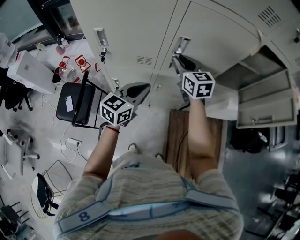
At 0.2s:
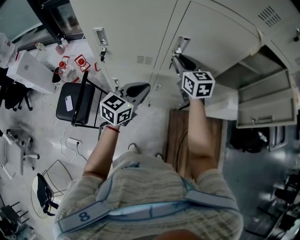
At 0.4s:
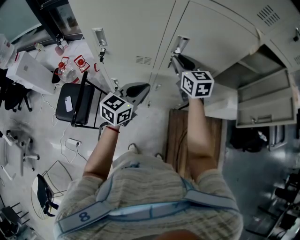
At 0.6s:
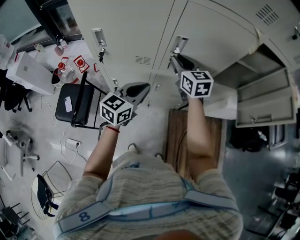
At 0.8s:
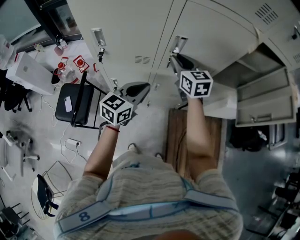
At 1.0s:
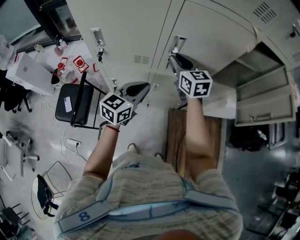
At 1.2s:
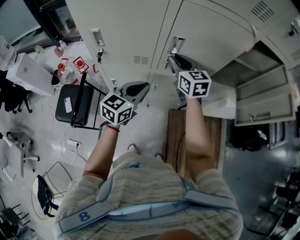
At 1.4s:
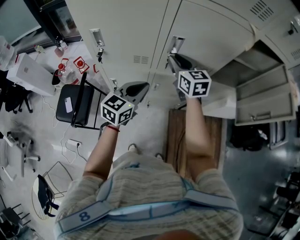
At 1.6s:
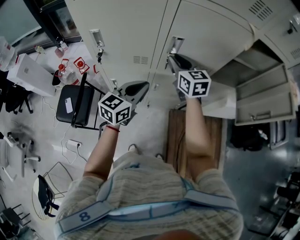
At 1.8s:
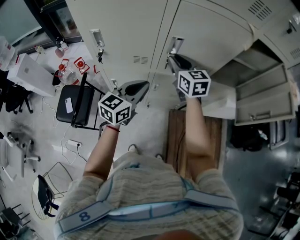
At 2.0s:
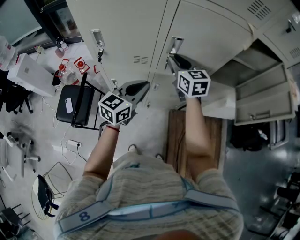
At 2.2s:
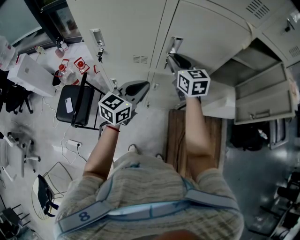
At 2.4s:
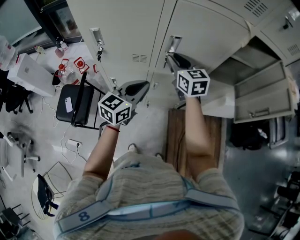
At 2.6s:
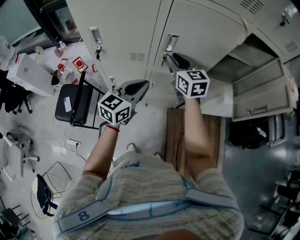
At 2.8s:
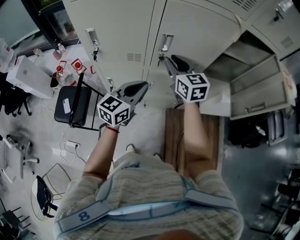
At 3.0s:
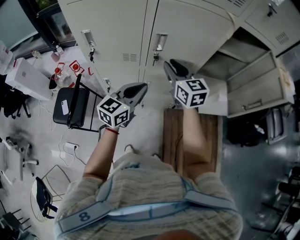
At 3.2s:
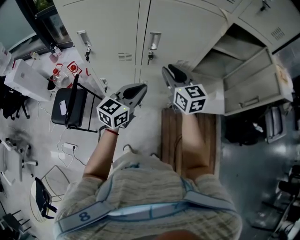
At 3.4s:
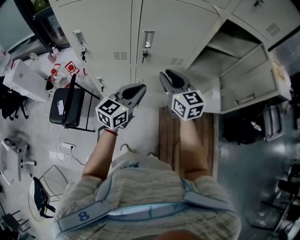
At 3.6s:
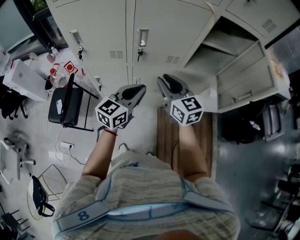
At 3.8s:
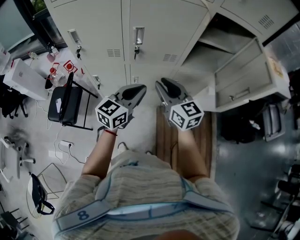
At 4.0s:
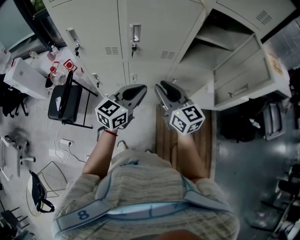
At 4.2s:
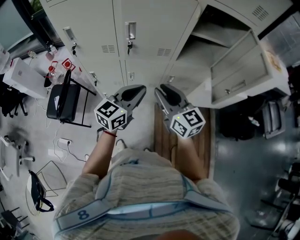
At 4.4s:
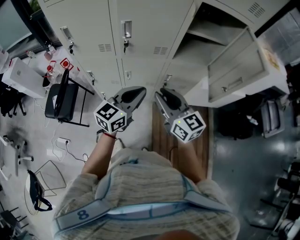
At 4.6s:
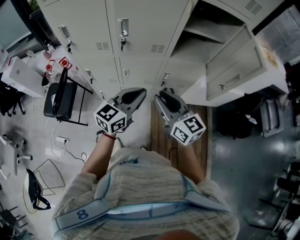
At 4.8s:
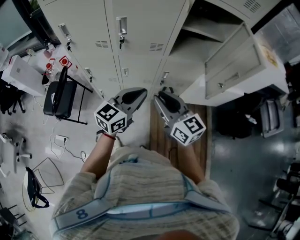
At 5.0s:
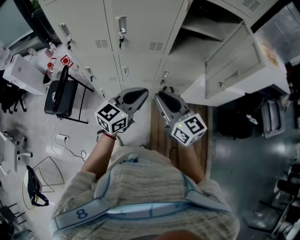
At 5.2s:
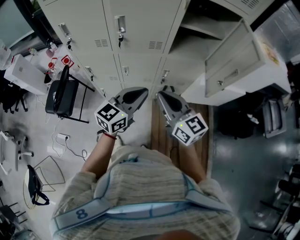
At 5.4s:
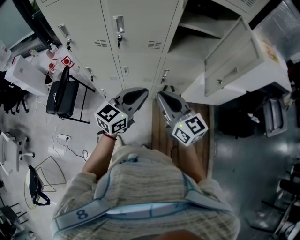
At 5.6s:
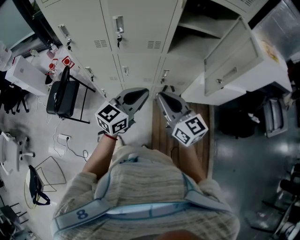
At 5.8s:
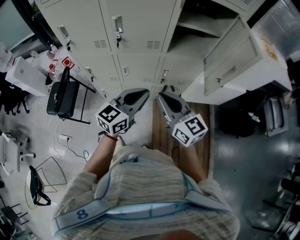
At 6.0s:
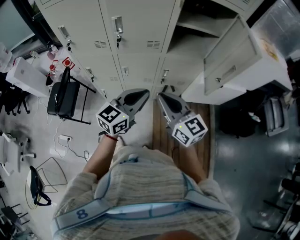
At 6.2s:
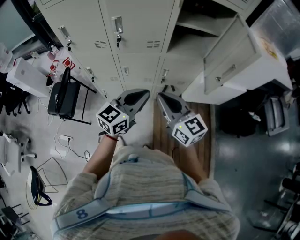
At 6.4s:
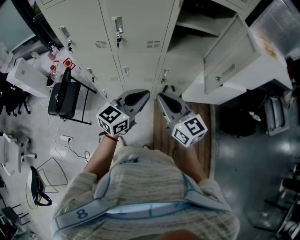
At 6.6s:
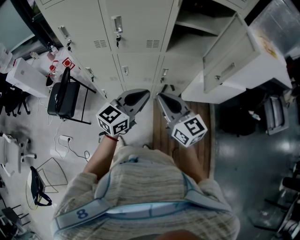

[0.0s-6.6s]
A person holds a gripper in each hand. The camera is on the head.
0.0s to 1.6s: The grippers make only small movements.
1.6s to 3.2s: The left gripper shifts about 5 cm to the right; the right gripper shifts roughly 10 cm backward and to the right.
3.2s to 5.0s: The left gripper heads to the right and backward, covering approximately 20 cm, while the right gripper travels backward and to the right by roughly 25 cm.
5.0s to 6.6s: The grippers move only a little.

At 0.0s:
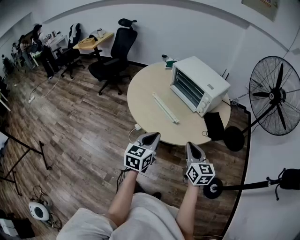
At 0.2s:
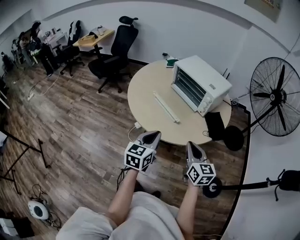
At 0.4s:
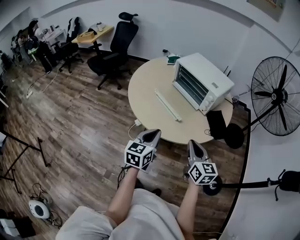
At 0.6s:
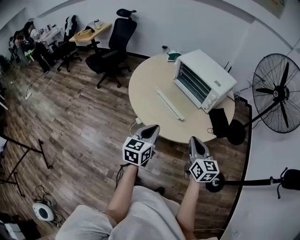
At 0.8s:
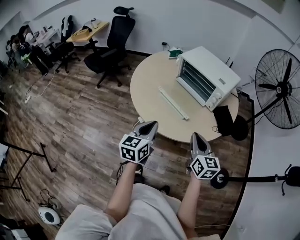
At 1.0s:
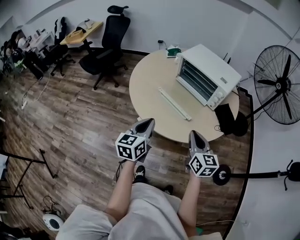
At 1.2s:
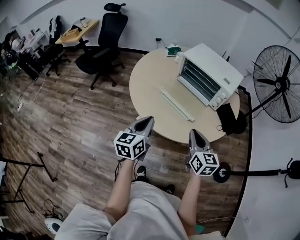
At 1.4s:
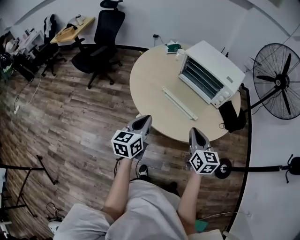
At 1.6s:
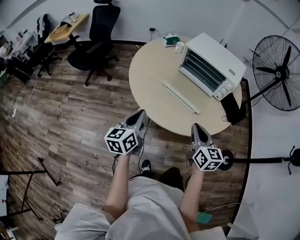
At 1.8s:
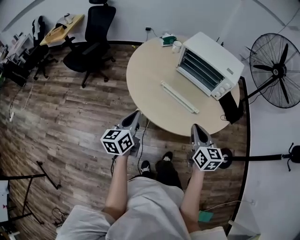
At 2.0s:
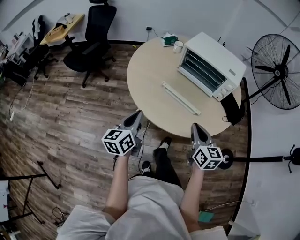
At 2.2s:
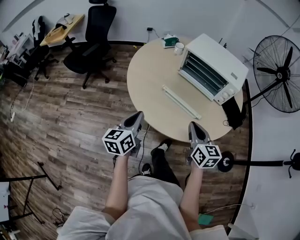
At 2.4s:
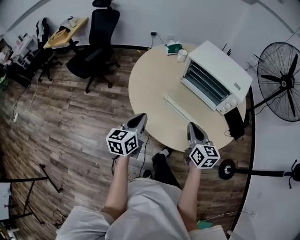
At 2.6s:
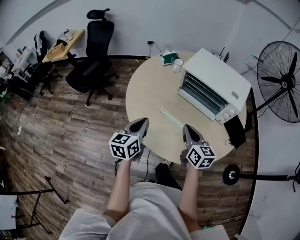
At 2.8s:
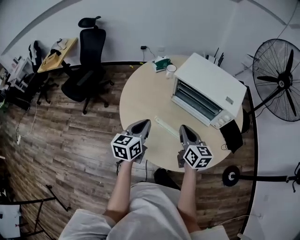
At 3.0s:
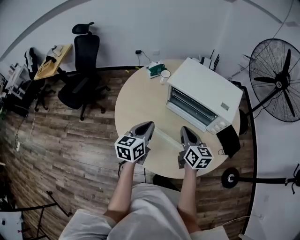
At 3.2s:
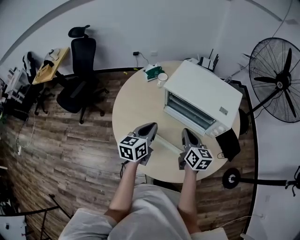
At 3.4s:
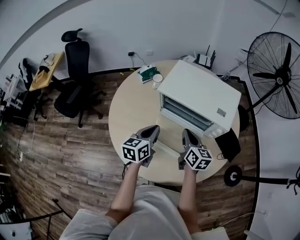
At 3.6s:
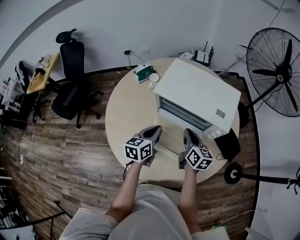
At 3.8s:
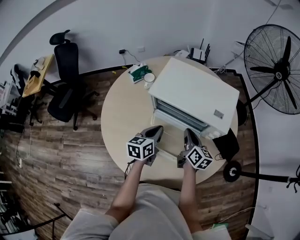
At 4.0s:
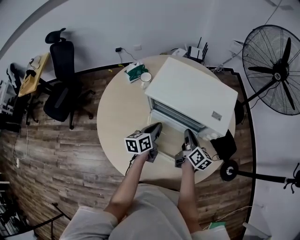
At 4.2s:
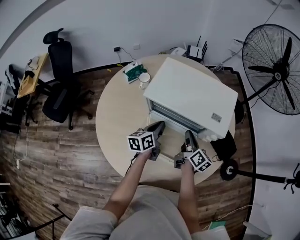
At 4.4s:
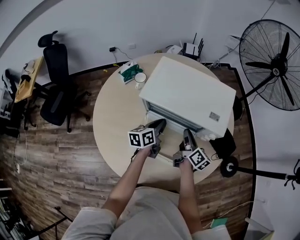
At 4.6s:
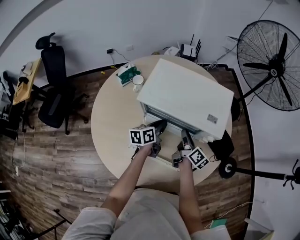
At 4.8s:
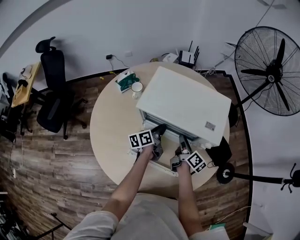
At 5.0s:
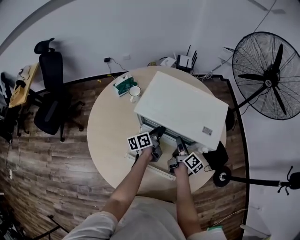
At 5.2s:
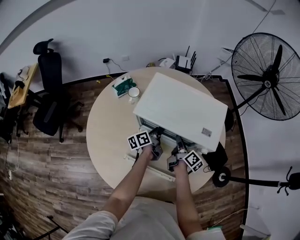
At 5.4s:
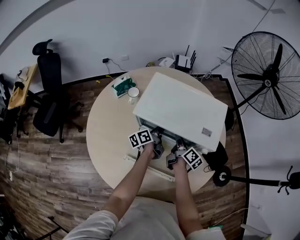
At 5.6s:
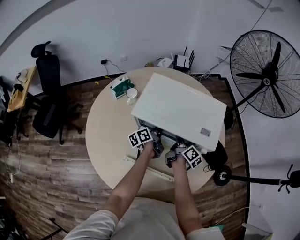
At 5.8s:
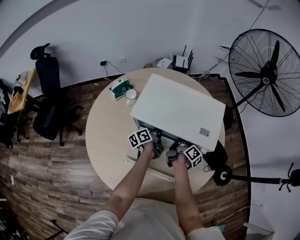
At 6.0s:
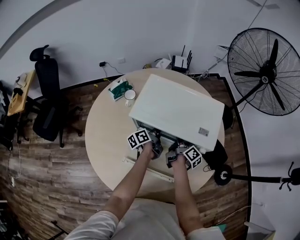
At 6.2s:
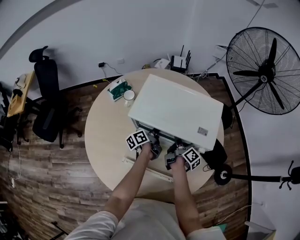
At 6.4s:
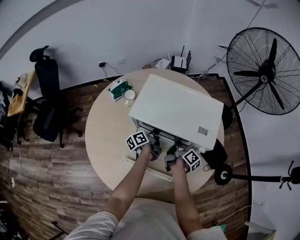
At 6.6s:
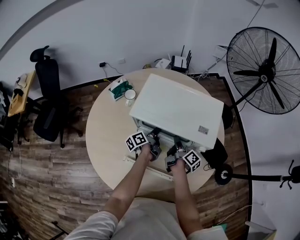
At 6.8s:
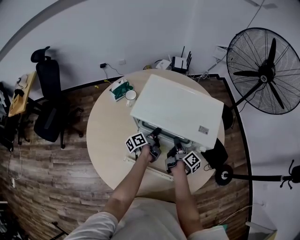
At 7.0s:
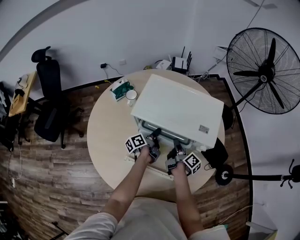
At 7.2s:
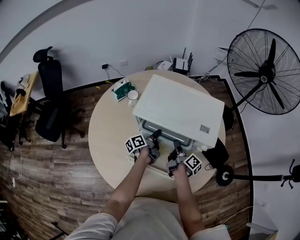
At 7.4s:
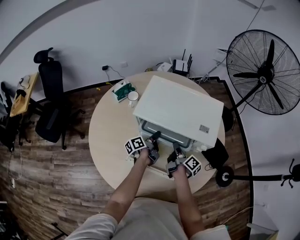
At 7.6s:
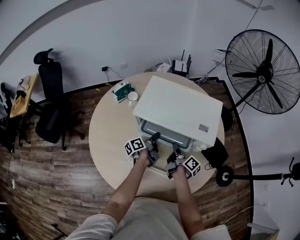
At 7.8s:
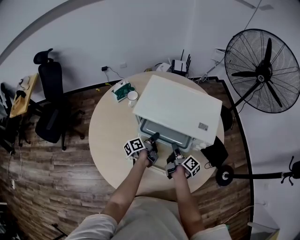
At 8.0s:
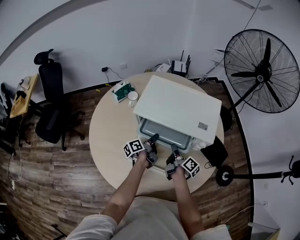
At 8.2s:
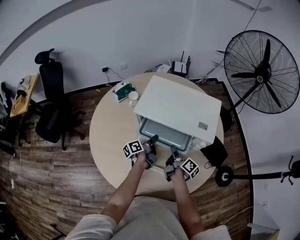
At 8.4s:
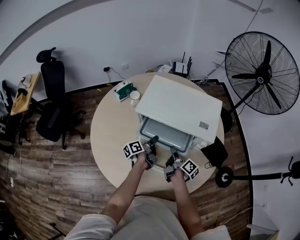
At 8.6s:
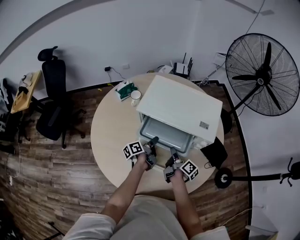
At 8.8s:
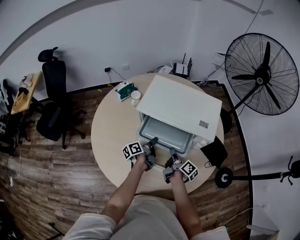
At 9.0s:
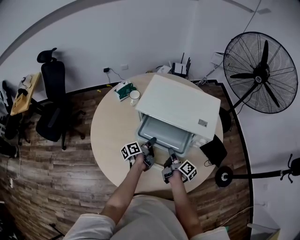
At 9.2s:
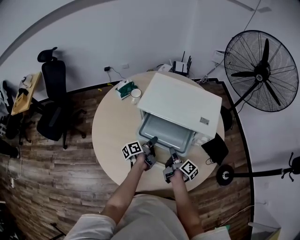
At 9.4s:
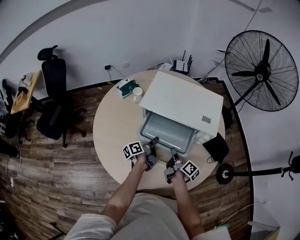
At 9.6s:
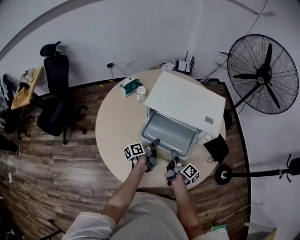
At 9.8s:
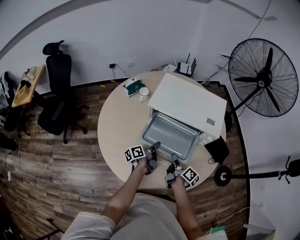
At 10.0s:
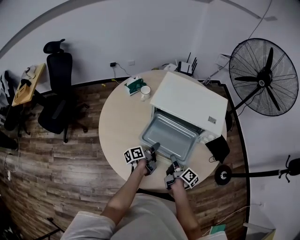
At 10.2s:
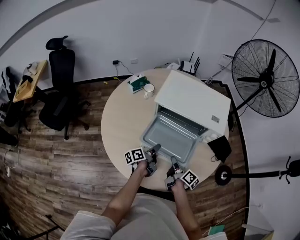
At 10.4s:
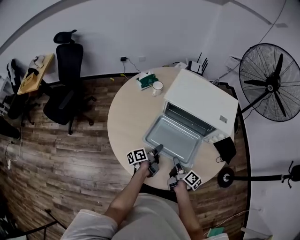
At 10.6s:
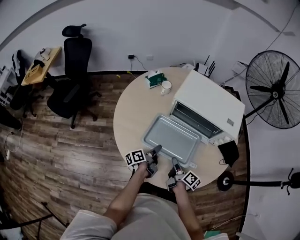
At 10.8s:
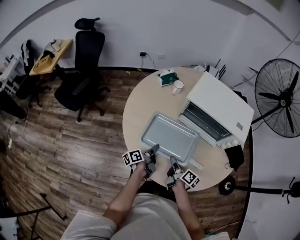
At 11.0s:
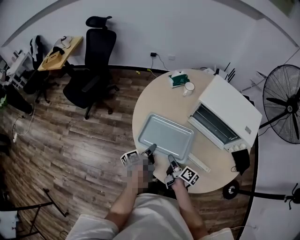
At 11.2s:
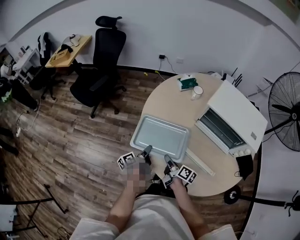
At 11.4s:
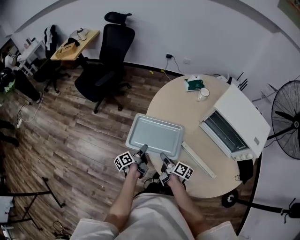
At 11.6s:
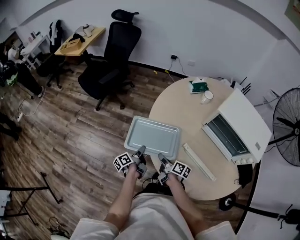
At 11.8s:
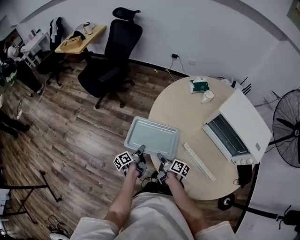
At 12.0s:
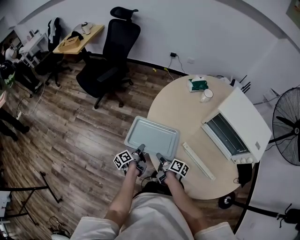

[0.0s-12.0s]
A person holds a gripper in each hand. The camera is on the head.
0.0s to 1.6s: The grippers both shift to the left and forward by about 25 cm.
1.6s to 3.0s: The grippers both shift forward by about 25 cm.
3.0s to 4.4s: Both grippers travel together forward, downward and to the right, roughly 25 cm. The right gripper changes its angle by some 40 degrees. Meanwhile the left gripper rotates roughly 30 degrees.
4.4s to 6.0s: The left gripper travels forward and downward by approximately 10 cm, and rotates about 30 degrees. Meanwhile the right gripper goes about 5 cm forward, and rotates approximately 20 degrees.
6.0s to 7.6s: Both grippers travel together backward, roughly 5 cm.
7.6s to 9.0s: The grippers both shift backward by some 5 cm.
9.0s to 10.4s: The right gripper travels backward and to the left by roughly 15 cm; the left gripper heads backward, covering about 10 cm.
10.4s to 12.0s: The left gripper changes place by about 35 cm, and rotates about 40 degrees. The right gripper shifts by about 30 cm, and turns by some 40 degrees.

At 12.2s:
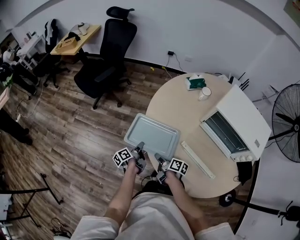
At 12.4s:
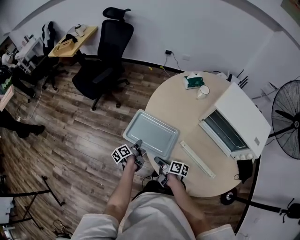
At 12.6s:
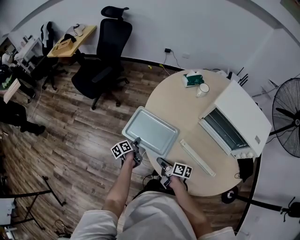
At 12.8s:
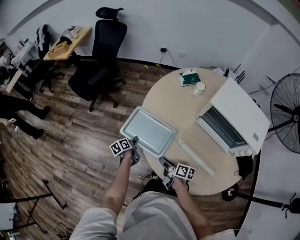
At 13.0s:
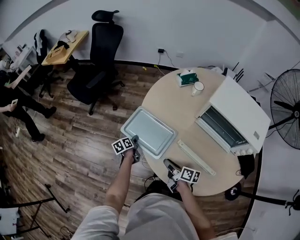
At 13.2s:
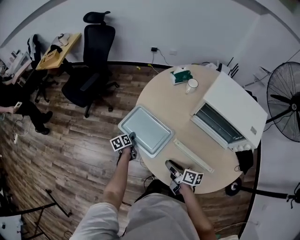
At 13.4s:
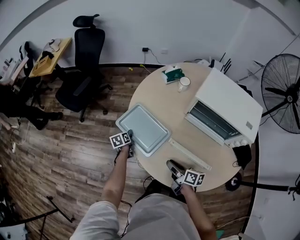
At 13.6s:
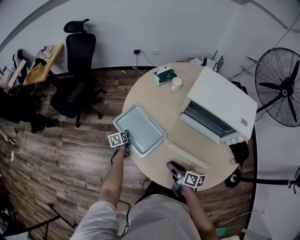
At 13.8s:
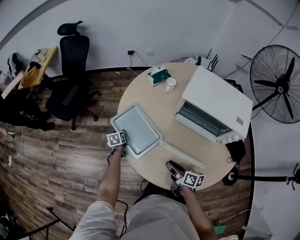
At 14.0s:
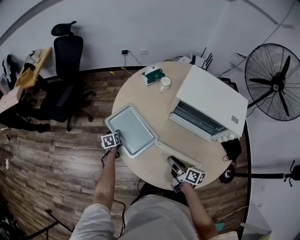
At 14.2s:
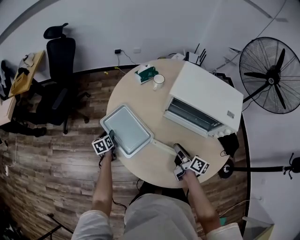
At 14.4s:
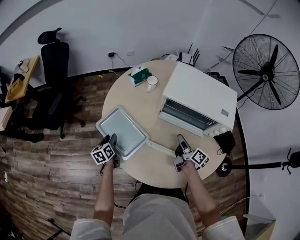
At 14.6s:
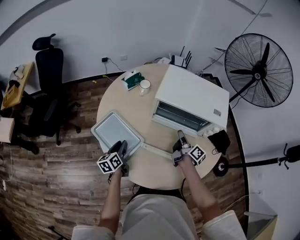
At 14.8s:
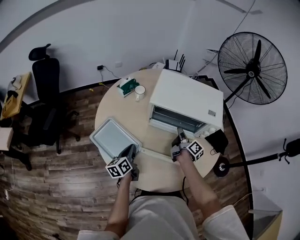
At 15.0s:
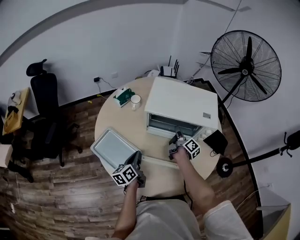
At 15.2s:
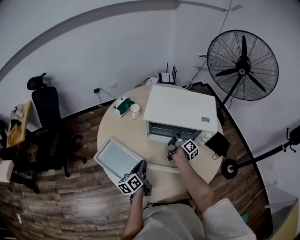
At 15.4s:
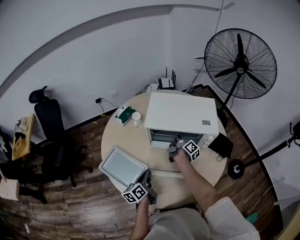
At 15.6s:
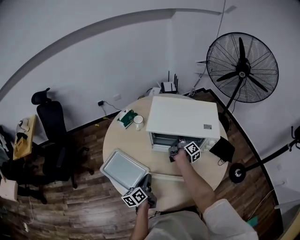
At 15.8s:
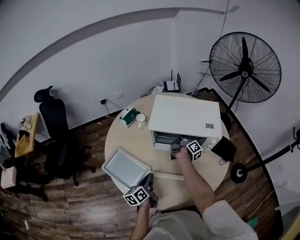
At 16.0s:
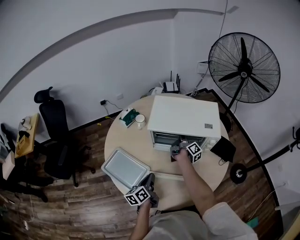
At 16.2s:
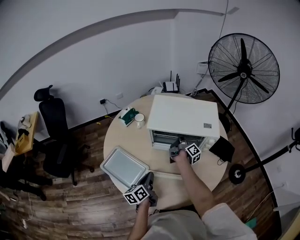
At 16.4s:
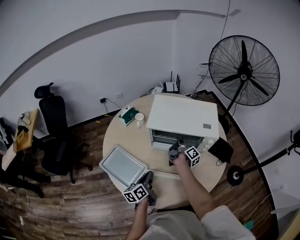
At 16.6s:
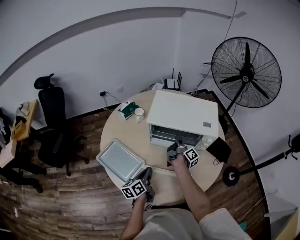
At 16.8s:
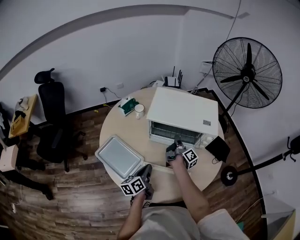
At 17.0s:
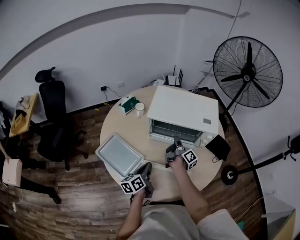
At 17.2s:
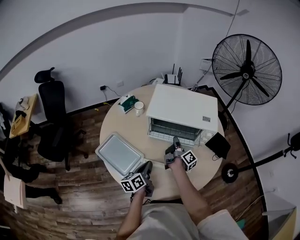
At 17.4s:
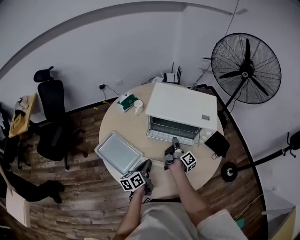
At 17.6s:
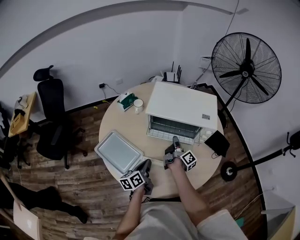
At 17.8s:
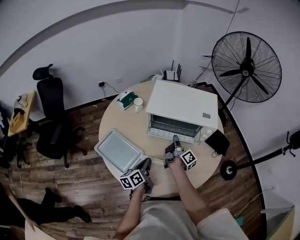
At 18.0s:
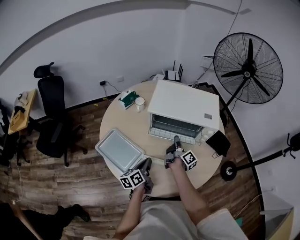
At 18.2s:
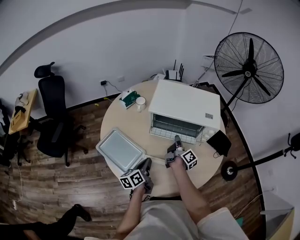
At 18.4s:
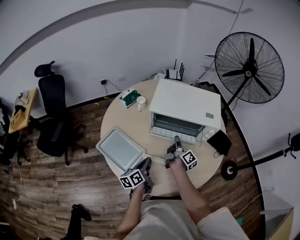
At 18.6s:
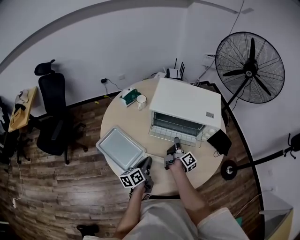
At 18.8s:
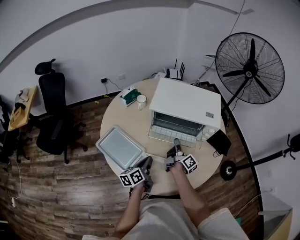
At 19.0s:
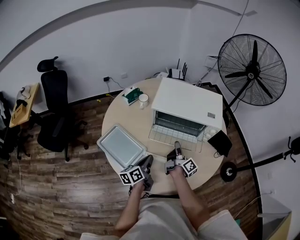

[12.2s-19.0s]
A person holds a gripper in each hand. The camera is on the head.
12.2s to 13.6s: The left gripper is displaced forward by about 15 cm, and twists about 50 degrees clockwise, seen from behind. The right gripper moves to the right, upward and backward, approximately 15 cm.
13.6s to 15.0s: The right gripper changes place by approximately 30 cm, and rotates some 60 degrees, while the left gripper shifts by approximately 35 cm, angles its fingers upward, by approximately 40 degrees, and closes.
15.0s to 16.2s: The left gripper moves some 5 cm, while the right gripper closes up.
16.2s to 17.6s: The right gripper travels backward by roughly 10 cm.
17.6s to 19.0s: The grippers stay close to where they were, moving slightly.
